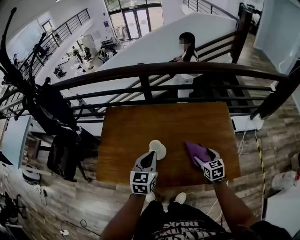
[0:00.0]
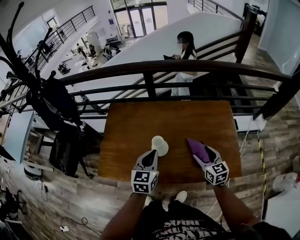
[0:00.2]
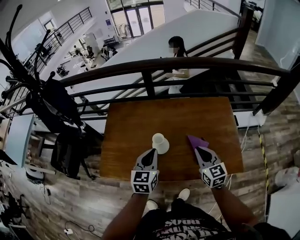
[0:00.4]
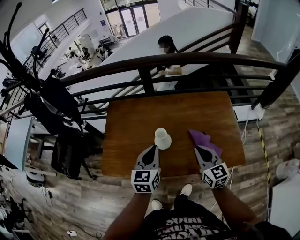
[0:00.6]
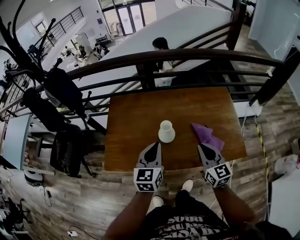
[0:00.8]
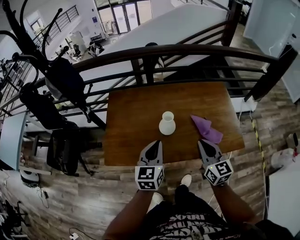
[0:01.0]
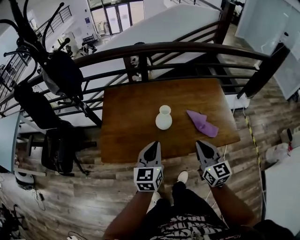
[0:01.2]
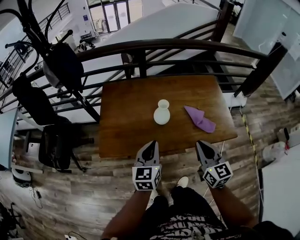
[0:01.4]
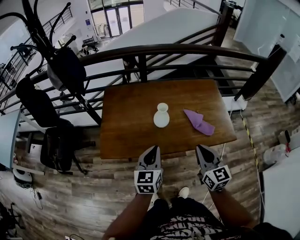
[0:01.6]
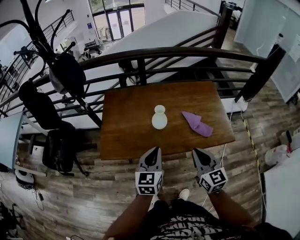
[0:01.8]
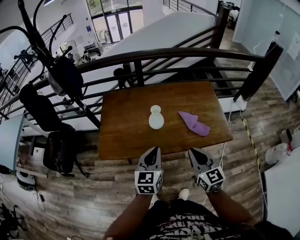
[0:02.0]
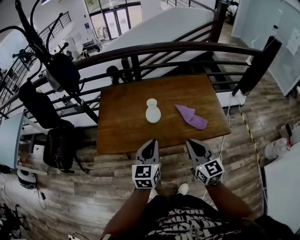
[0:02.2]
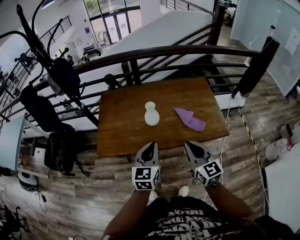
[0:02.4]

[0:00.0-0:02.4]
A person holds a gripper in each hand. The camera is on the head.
0.0 to 1.2 s: The left gripper moves backward and to the left, about 15 cm; the right gripper heads backward, upward and to the left, covering about 30 cm, rotates some 30 degrees, and closes its fingers.
1.2 to 2.4 s: The right gripper moves backward, approximately 10 cm. Meanwhile the left gripper heads backward and to the right, covering approximately 10 cm.

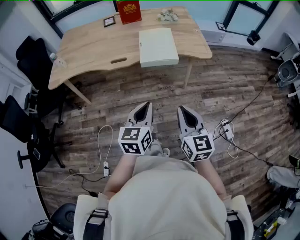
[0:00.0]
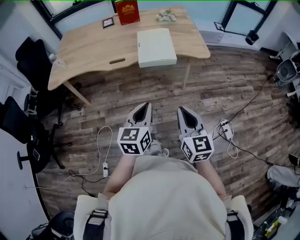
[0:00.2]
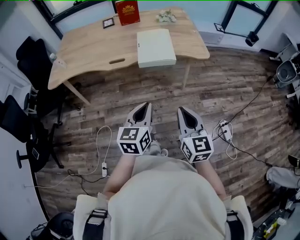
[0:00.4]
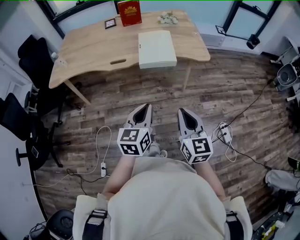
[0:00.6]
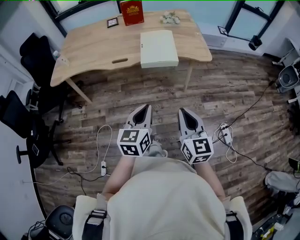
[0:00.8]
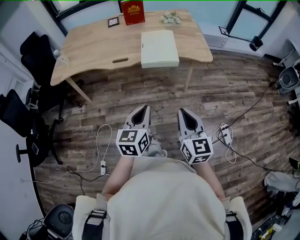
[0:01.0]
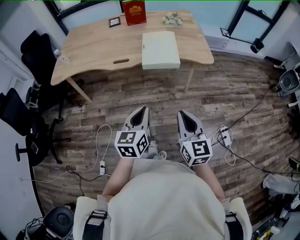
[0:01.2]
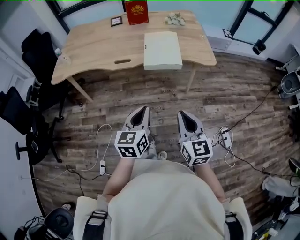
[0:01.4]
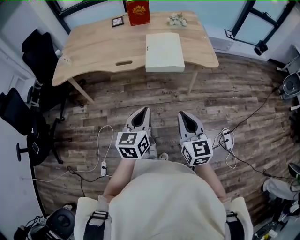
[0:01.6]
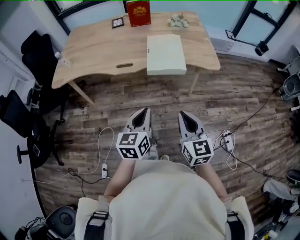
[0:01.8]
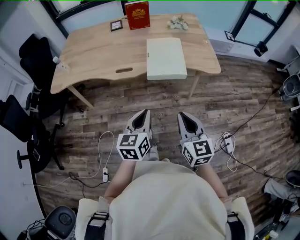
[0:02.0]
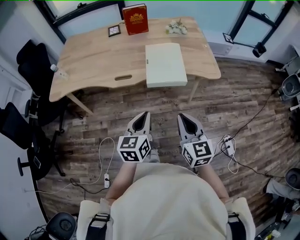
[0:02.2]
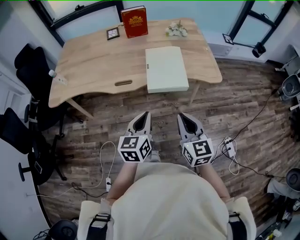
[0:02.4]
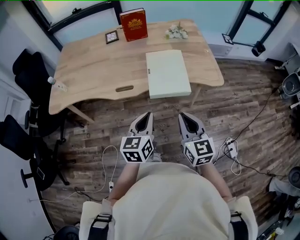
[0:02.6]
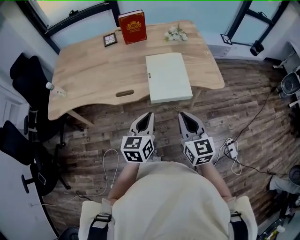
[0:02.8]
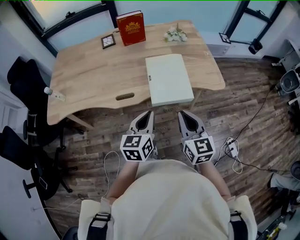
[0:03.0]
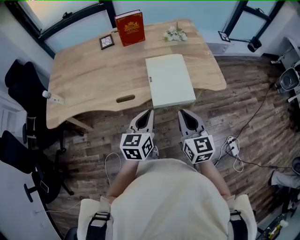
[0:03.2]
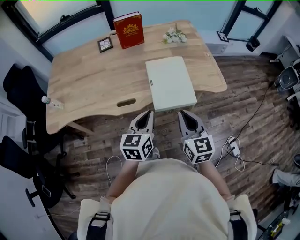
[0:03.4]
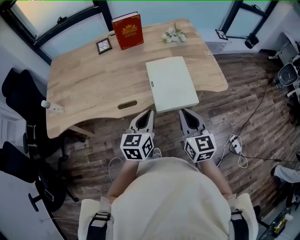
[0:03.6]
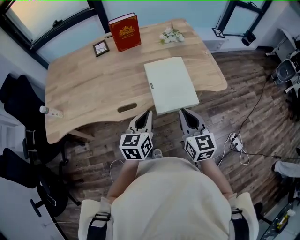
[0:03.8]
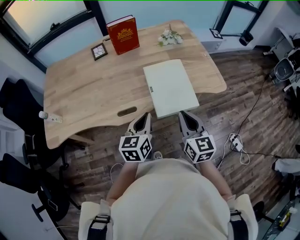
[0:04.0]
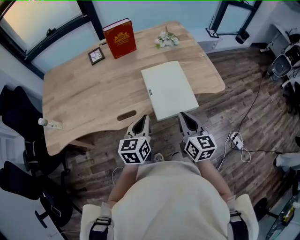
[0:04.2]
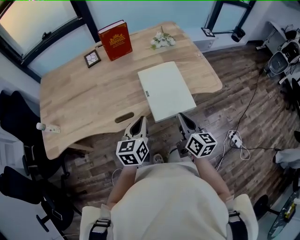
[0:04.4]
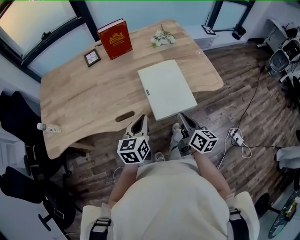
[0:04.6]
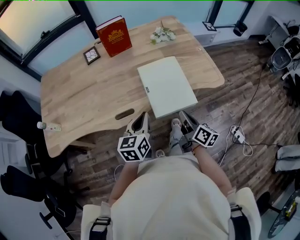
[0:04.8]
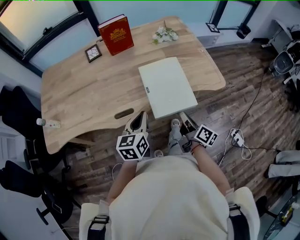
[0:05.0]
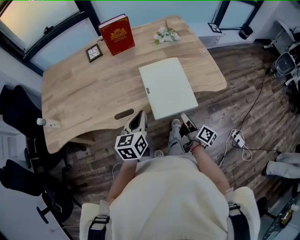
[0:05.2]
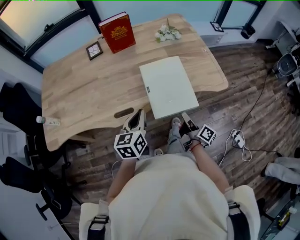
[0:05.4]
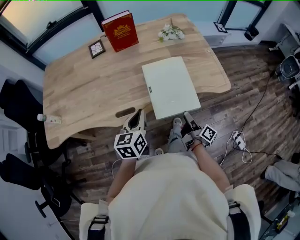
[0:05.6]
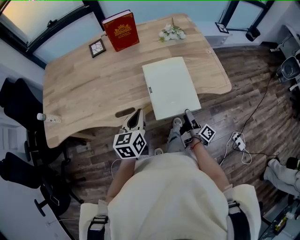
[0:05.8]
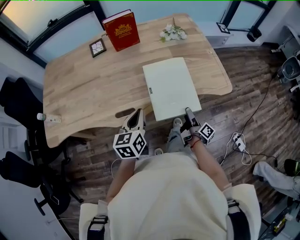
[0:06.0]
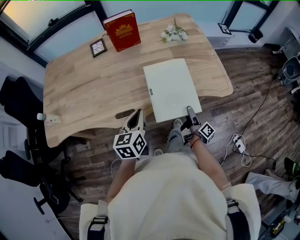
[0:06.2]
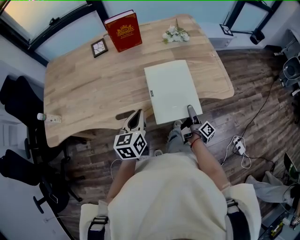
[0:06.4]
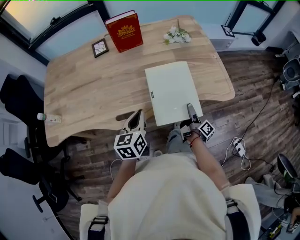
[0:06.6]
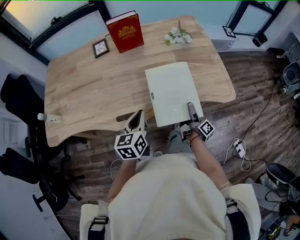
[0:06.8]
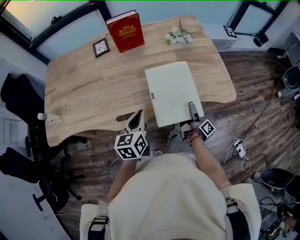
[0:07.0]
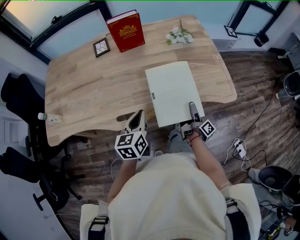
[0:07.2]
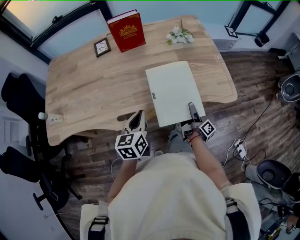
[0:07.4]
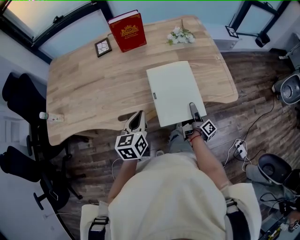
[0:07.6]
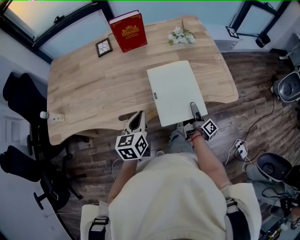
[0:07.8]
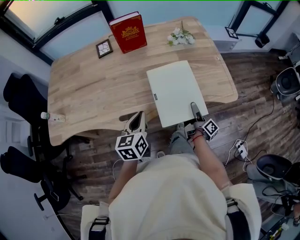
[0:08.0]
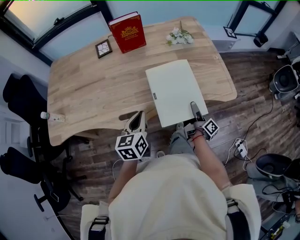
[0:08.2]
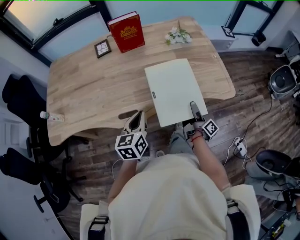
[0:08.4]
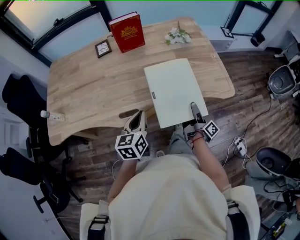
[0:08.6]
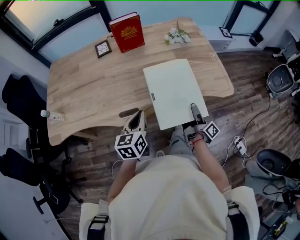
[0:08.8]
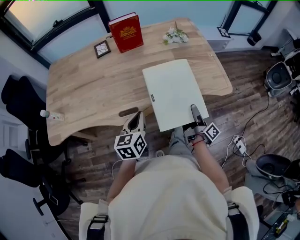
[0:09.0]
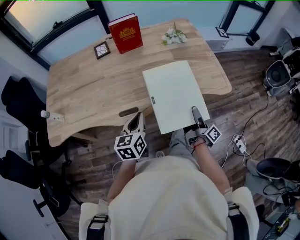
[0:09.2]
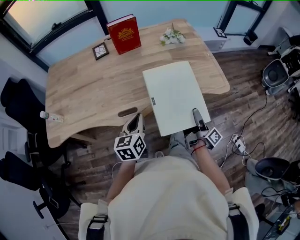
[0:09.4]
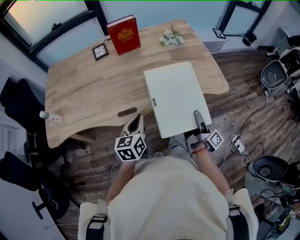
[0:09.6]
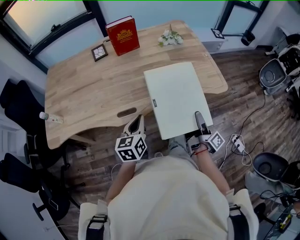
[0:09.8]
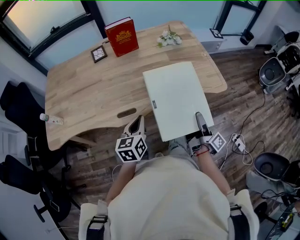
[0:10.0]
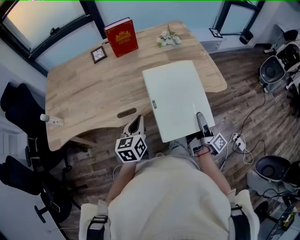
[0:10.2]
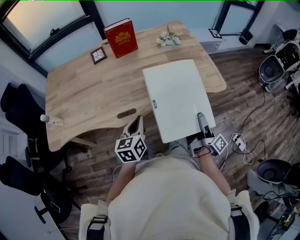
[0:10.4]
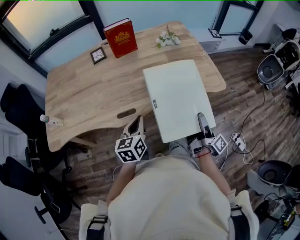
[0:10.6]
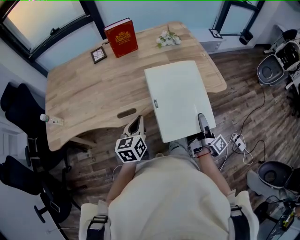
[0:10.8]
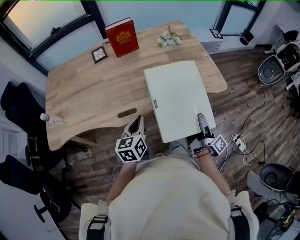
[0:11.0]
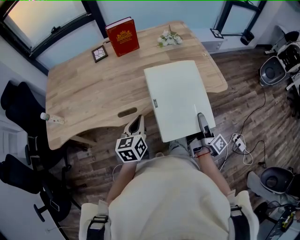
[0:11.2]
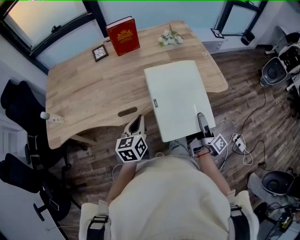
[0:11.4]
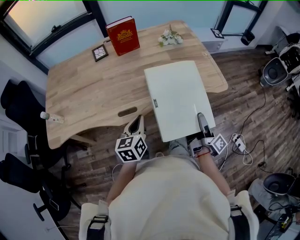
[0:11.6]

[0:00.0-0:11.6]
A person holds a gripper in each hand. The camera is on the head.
0.0 to 1.4 s: The grippers stay close to where they were, moving slightly.
1.4 to 2.8 s: Both grippers move forward, roughly 20 cm.
2.8 to 4.4 s: The left gripper travels forward and to the left by approximately 15 cm. The right gripper heads forward and downward, covering approximately 15 cm, and swivels some 30 degrees.
4.4 to 5.8 s: The right gripper heads downward and to the right, covering approximately 20 cm, rotates around the line of its fingers by about 60 degrees, clockwise from behind, and opens its fingers.
5.8 to 7.2 s: The right gripper moves forward, some 10 cm.
7.2 to 8.8 s: The right gripper moves upward and backward, approximately 10 cm, and closes.
8.8 to 10.2 s: The right gripper moves backward and upward, about 10 cm.
10.2 to 11.6 s: Neither gripper changes place.

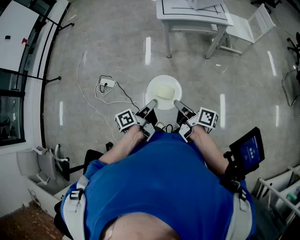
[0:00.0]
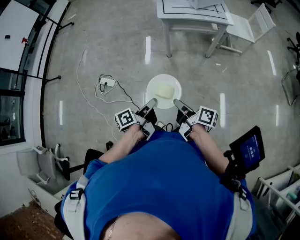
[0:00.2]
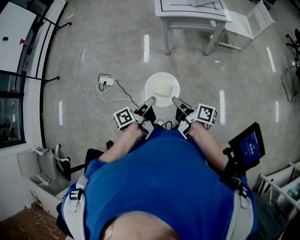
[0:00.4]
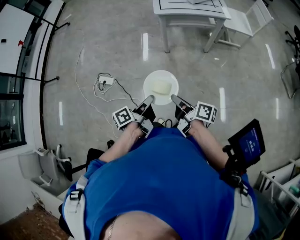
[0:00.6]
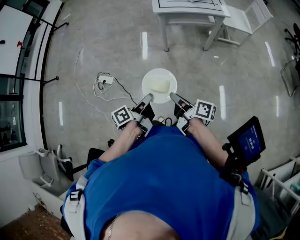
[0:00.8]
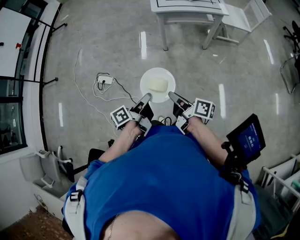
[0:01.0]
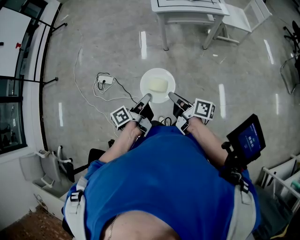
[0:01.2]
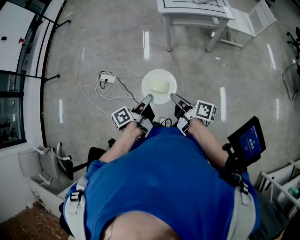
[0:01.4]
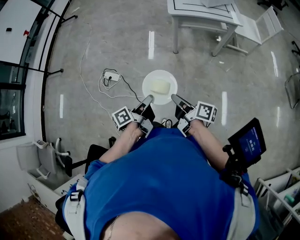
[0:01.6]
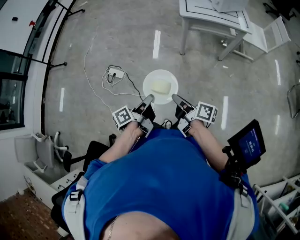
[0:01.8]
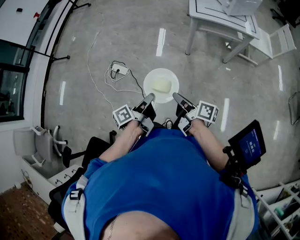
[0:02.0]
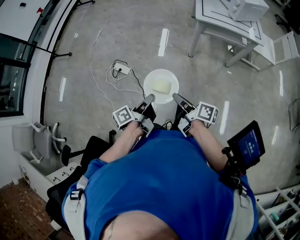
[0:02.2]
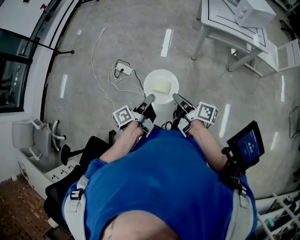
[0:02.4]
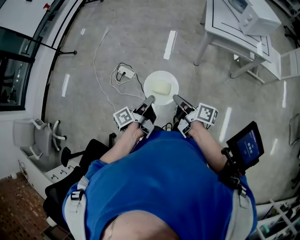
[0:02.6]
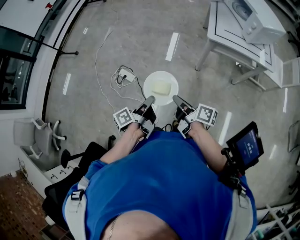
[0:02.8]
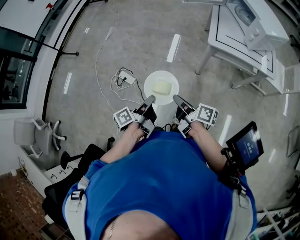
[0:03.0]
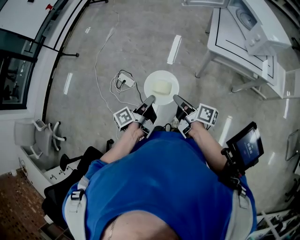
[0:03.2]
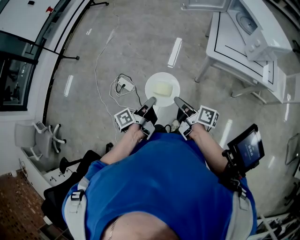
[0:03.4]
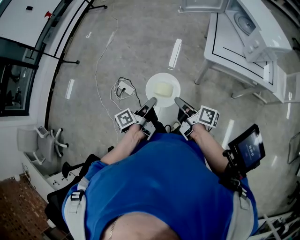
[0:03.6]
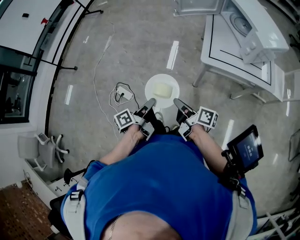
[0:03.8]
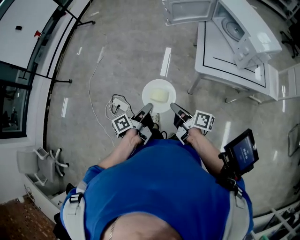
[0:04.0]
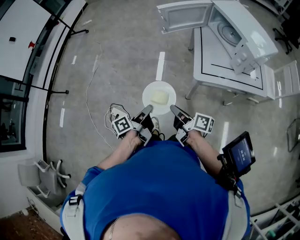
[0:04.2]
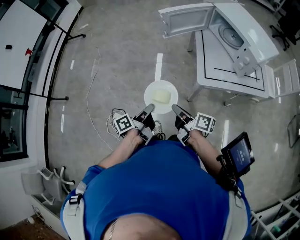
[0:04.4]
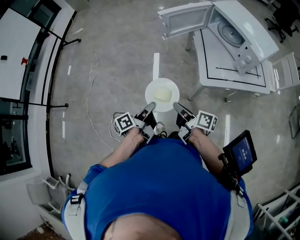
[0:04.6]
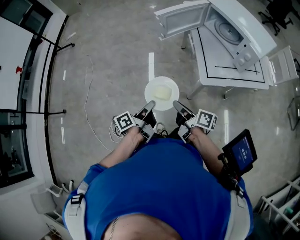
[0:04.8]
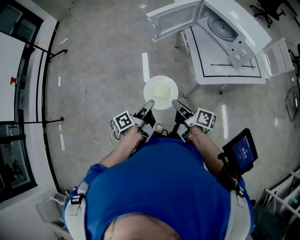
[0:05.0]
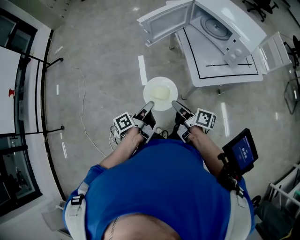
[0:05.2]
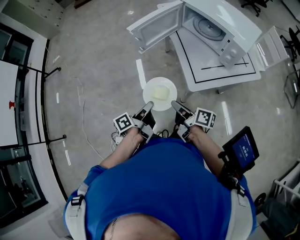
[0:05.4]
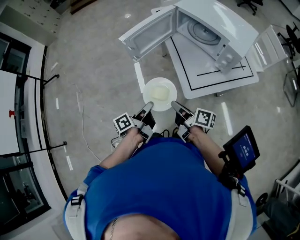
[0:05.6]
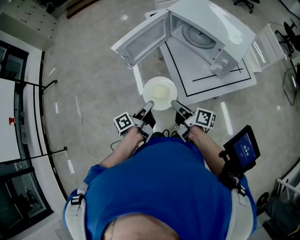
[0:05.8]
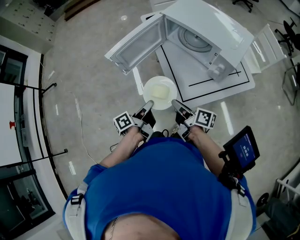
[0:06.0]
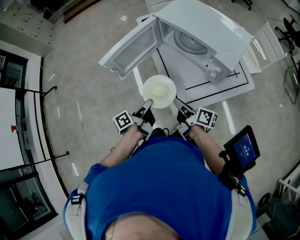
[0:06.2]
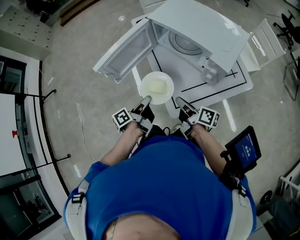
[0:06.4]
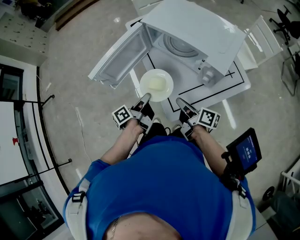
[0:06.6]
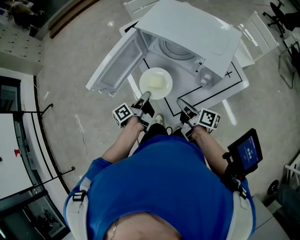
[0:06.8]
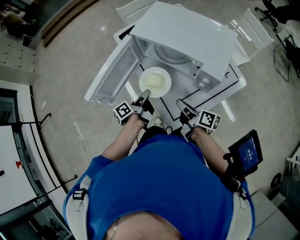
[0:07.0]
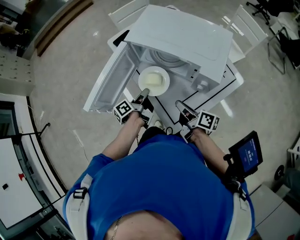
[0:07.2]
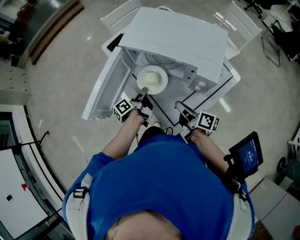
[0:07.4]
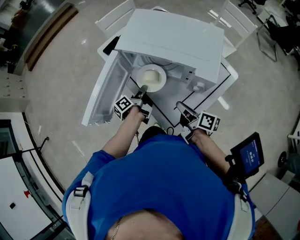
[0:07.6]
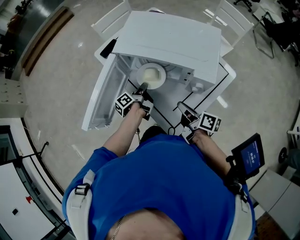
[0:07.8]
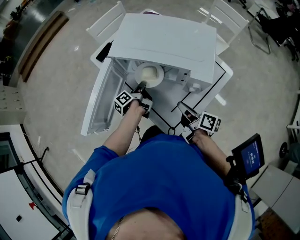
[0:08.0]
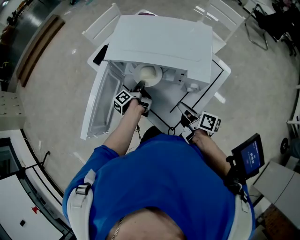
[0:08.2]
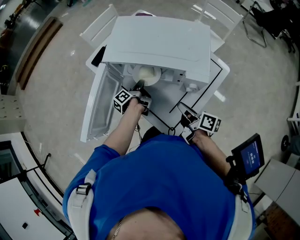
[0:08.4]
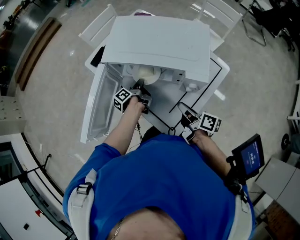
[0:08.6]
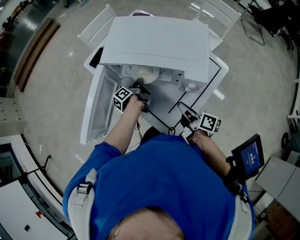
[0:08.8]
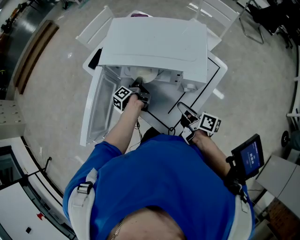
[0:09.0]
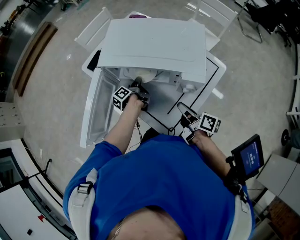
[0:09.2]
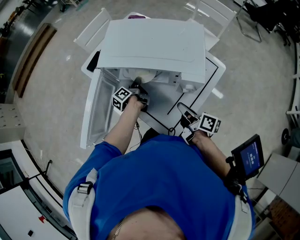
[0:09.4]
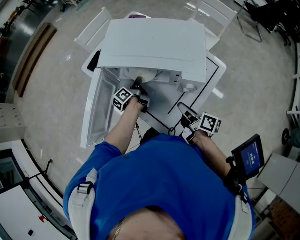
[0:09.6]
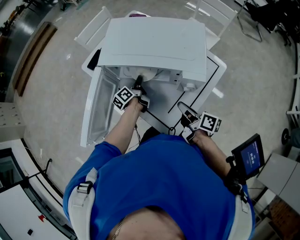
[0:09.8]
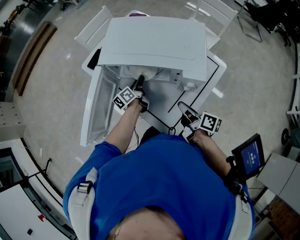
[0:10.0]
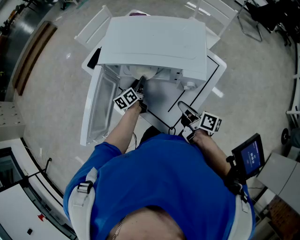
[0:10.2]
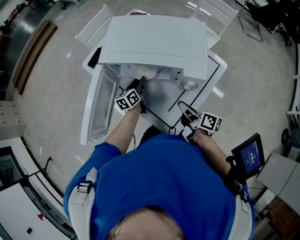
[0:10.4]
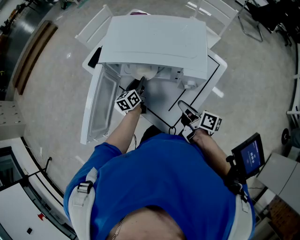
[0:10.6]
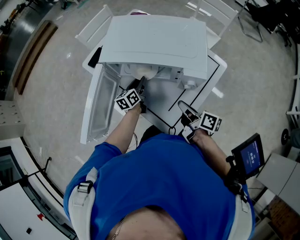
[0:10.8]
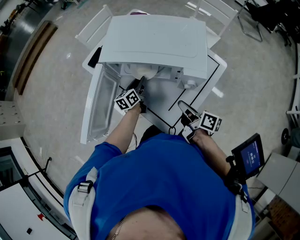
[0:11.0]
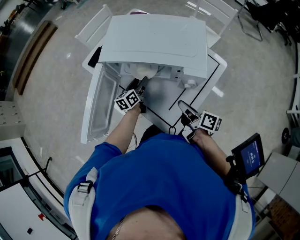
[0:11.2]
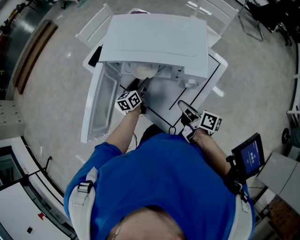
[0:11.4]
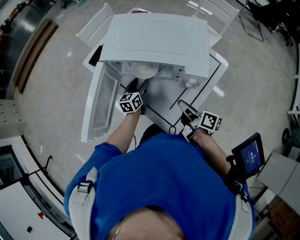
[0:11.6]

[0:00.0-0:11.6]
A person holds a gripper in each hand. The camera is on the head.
0.0 to 1.4 s: The grippers make only small movements.
1.4 to 2.8 s: The two grippers go approximately 20 cm forward and to the left.
2.8 to 4.4 s: Both grippers move forward, approximately 30 cm.
4.4 to 5.8 s: The two grippers go approximately 25 cm forward and to the right. The right gripper swivels approximately 20 degrees.
5.8 to 7.2 s: The left gripper goes roughly 25 cm forward. Meanwhile the right gripper shifts roughly 15 cm forward and to the right, and changes its angle by some 20 degrees.
7.2 to 8.8 s: The left gripper travels forward by roughly 15 cm, while the right gripper goes roughly 5 cm to the right.
8.8 to 10.2 s: The left gripper twists some 40 degrees clockwise, seen from behind, and opens.
10.2 to 11.6 s: The left gripper turns by some 20 degrees, and opens.
